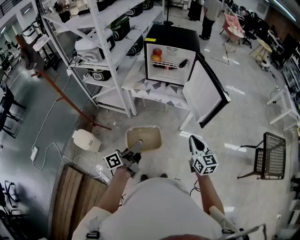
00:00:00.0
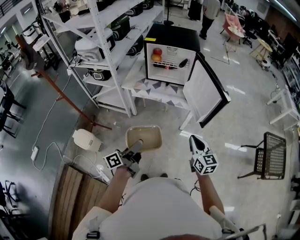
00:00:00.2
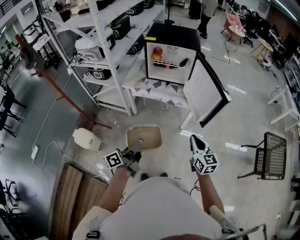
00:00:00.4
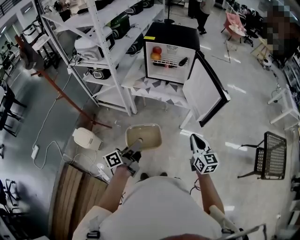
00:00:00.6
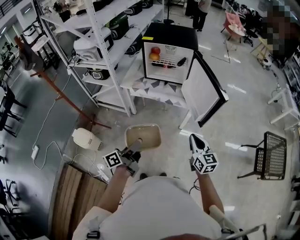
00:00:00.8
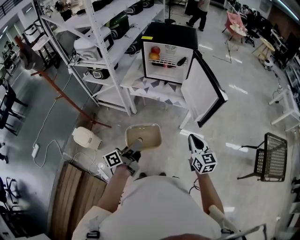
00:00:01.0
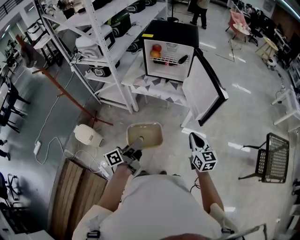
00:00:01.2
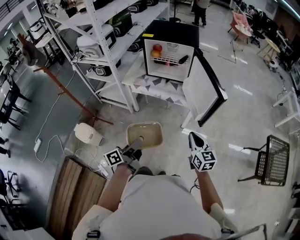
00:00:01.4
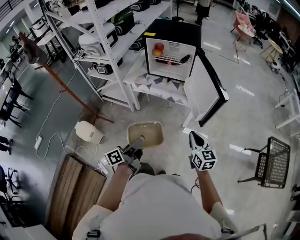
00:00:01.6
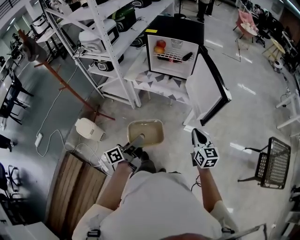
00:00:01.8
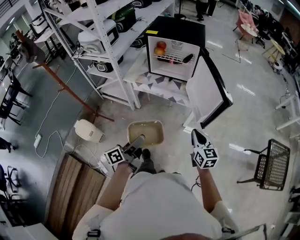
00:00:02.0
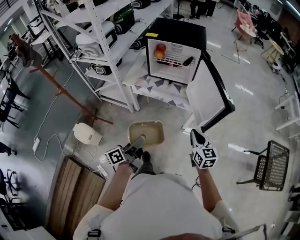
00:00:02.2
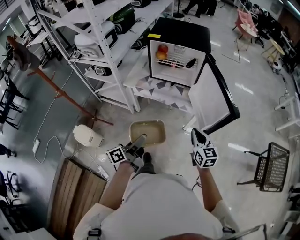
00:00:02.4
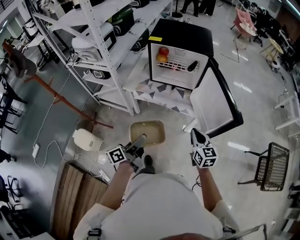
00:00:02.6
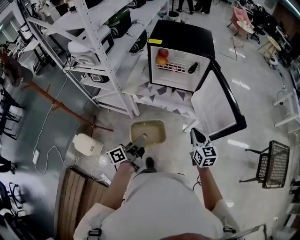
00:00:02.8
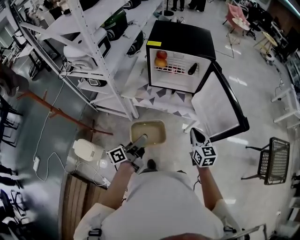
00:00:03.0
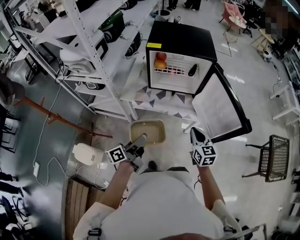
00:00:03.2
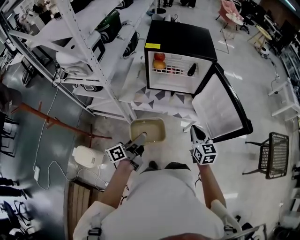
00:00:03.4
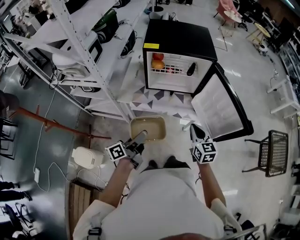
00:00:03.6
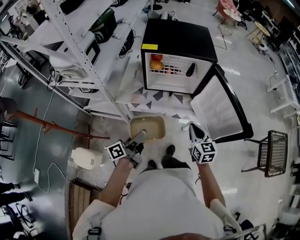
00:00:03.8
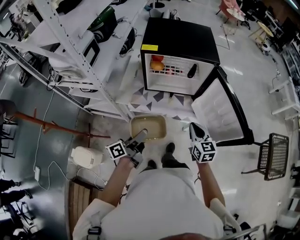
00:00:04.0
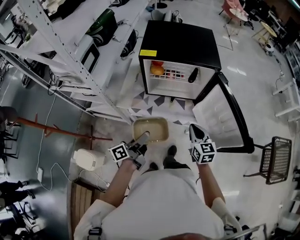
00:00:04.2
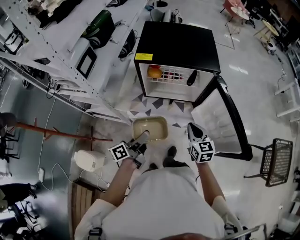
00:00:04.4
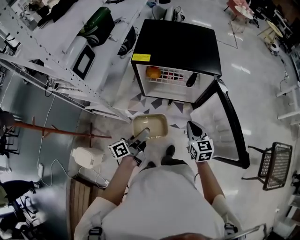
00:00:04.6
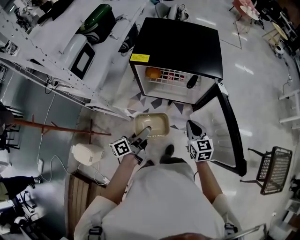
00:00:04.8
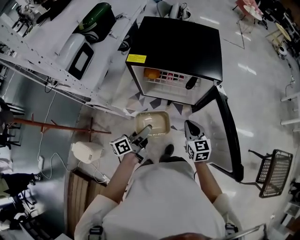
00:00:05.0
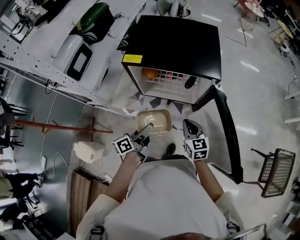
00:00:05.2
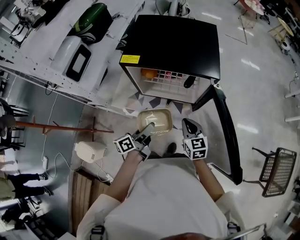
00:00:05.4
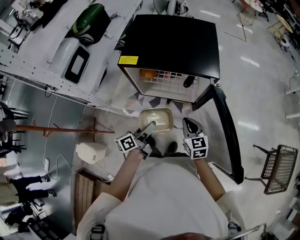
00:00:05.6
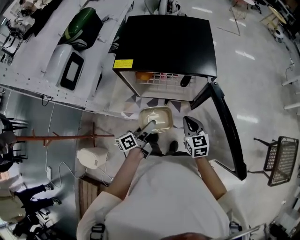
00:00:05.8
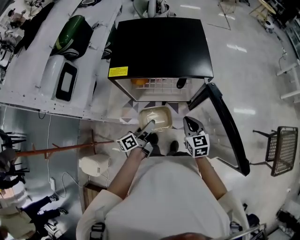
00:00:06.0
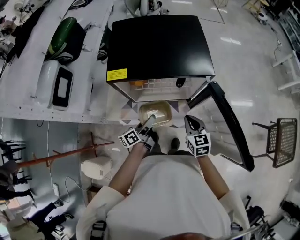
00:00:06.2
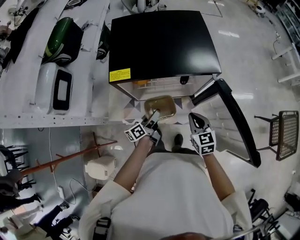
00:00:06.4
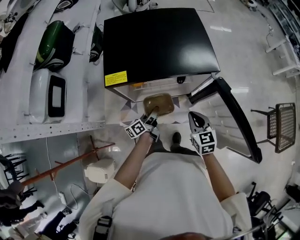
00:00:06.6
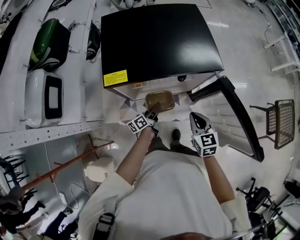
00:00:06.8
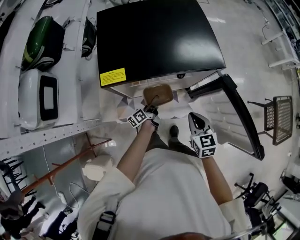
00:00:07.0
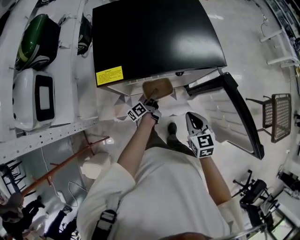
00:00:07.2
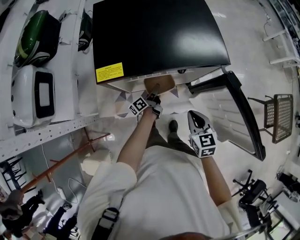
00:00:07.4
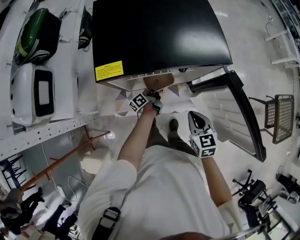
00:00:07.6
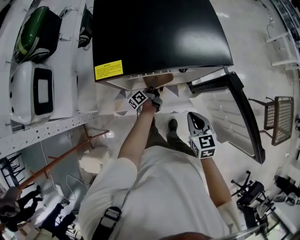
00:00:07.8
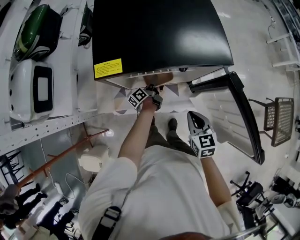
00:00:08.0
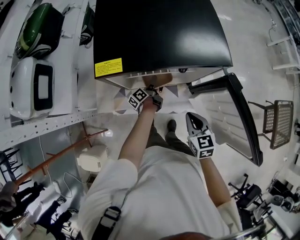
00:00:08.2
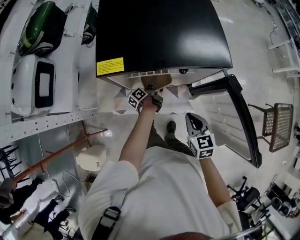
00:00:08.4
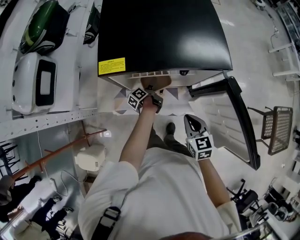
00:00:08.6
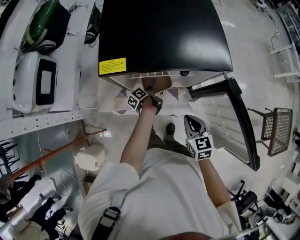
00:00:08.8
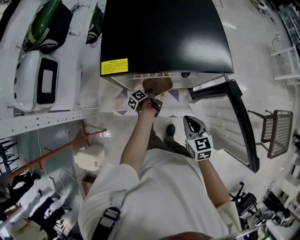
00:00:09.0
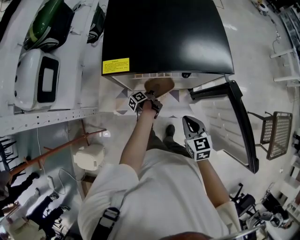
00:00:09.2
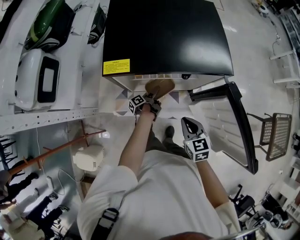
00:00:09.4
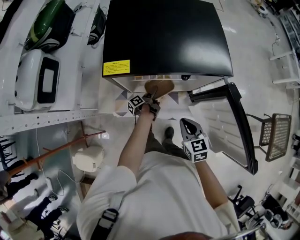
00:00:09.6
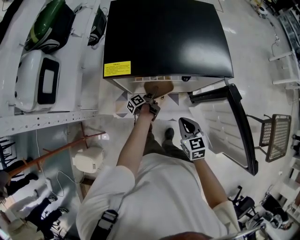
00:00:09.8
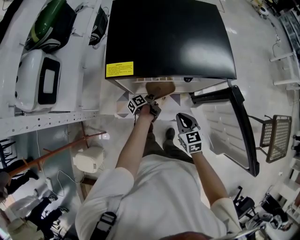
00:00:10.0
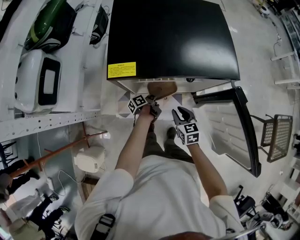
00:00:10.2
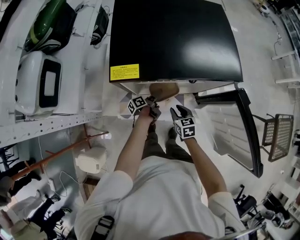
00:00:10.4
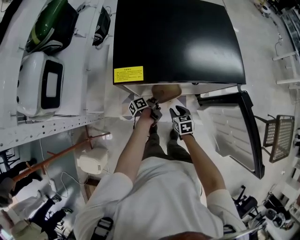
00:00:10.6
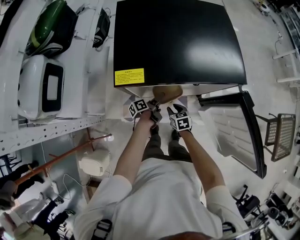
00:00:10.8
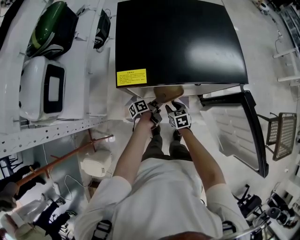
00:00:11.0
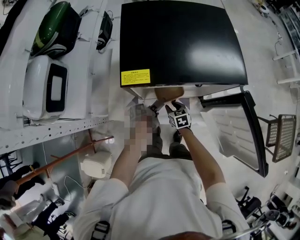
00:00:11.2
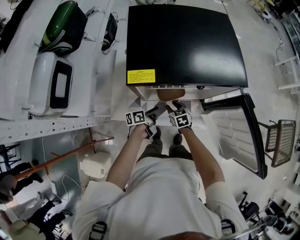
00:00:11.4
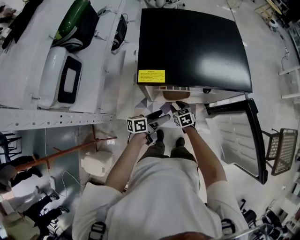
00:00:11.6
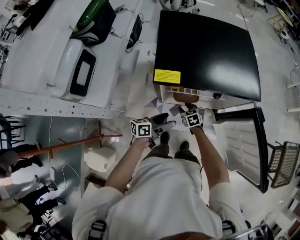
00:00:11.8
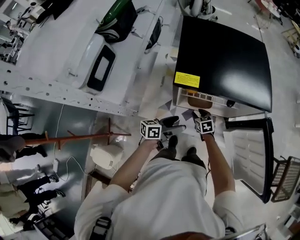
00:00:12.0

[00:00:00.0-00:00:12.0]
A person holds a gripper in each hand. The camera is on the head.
00:00:00.0 to 00:00:01.6: The two grippers go approximately 5 cm to the right.
00:00:01.6 to 00:00:03.0: The two grippers go about 20 cm forward and to the left.
00:00:03.0 to 00:00:04.4: The grippers both shift forward by roughly 15 cm.
00:00:04.4 to 00:00:06.0: The right gripper moves forward, approximately 10 cm; the left gripper shifts roughly 15 cm forward, to the right and downward.
00:00:06.0 to 00:00:07.6: The left gripper shifts approximately 25 cm downward and forward.
00:00:07.6 to 00:00:09.0: The left gripper ends up approximately 5 cm from where it was, swivels approximately 30 degrees, and opens up.
00:00:09.0 to 00:00:10.4: The right gripper moves downward, forward and to the left, about 15 cm, and opens.
00:00:10.4 to 00:00:12.0: The left gripper goes roughly 20 cm upward and backward, and rolls clockwise, seen from behind, by roughly 40 degrees, while the right gripper is displaced to the left and forward by about 10 cm.

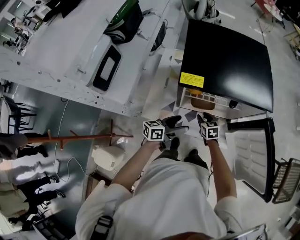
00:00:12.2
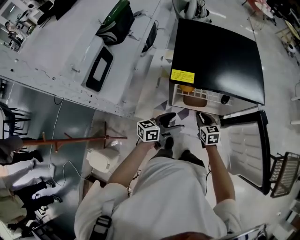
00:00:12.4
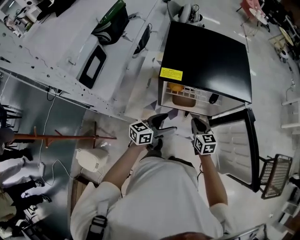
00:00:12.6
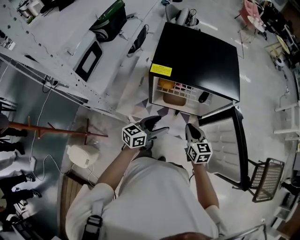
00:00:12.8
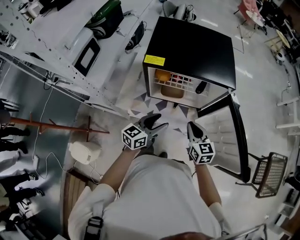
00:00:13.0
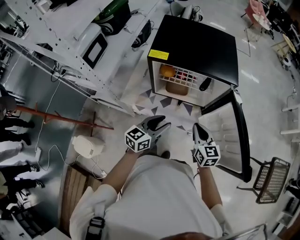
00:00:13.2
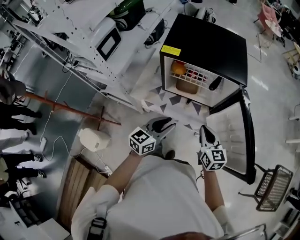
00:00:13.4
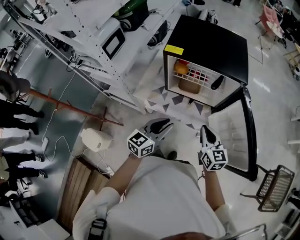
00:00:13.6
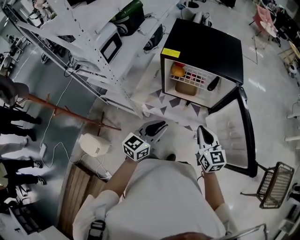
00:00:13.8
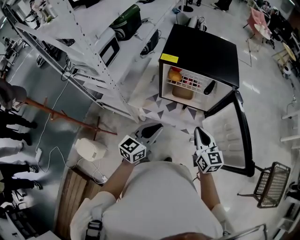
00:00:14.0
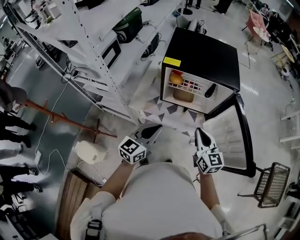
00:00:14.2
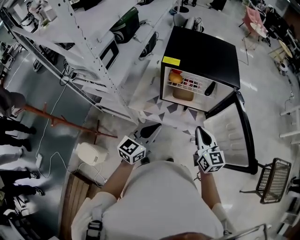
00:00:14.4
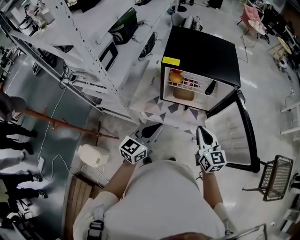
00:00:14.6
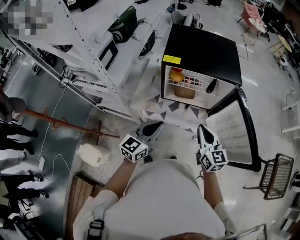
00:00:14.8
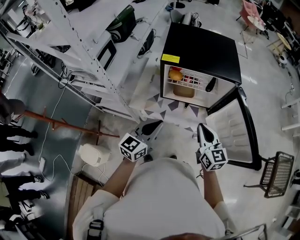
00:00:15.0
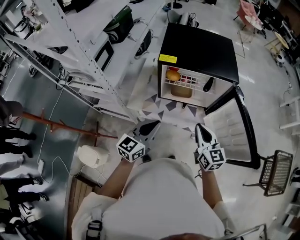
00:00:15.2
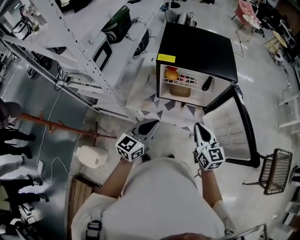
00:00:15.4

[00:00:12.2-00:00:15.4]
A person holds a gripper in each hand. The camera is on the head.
00:00:12.2 to 00:00:13.8: The right gripper heads upward, backward and to the right, covering about 35 cm, angles its fingers upward, by approximately 30 degrees, and closes. The left gripper travels backward and upward by approximately 25 cm, changes its angle by approximately 40 degrees, and closes.
00:00:13.8 to 00:00:15.4: The left gripper heads to the left, covering about 5 cm.

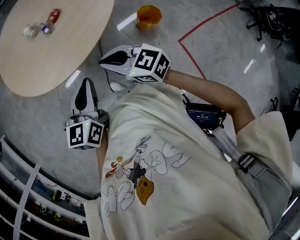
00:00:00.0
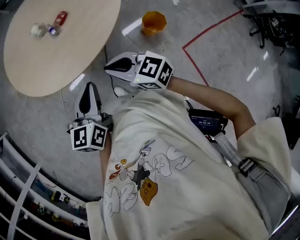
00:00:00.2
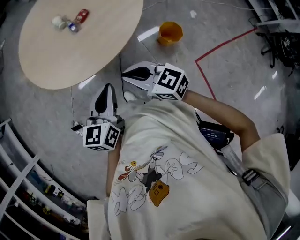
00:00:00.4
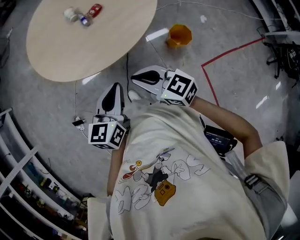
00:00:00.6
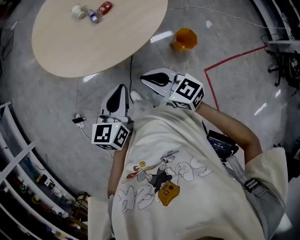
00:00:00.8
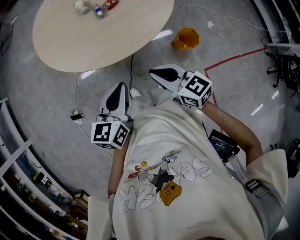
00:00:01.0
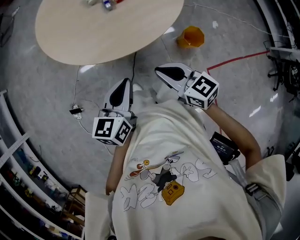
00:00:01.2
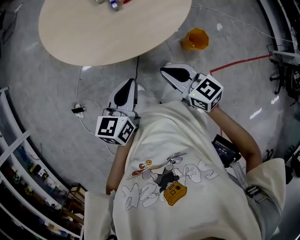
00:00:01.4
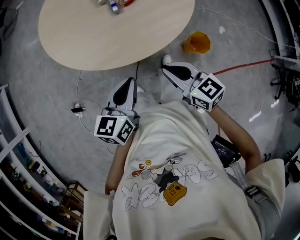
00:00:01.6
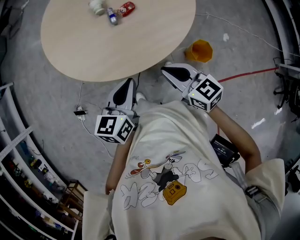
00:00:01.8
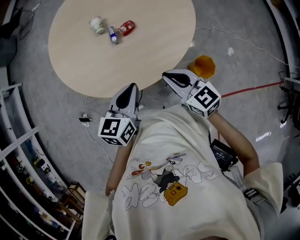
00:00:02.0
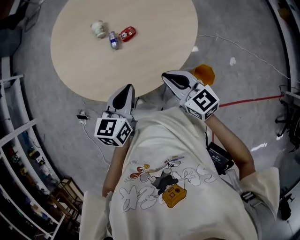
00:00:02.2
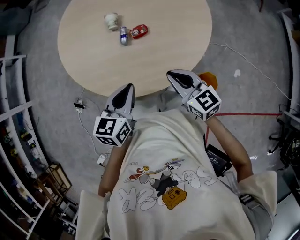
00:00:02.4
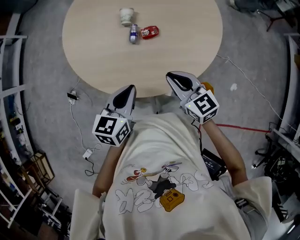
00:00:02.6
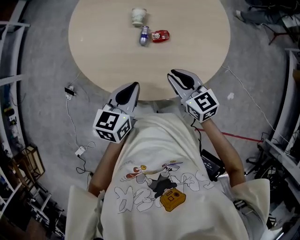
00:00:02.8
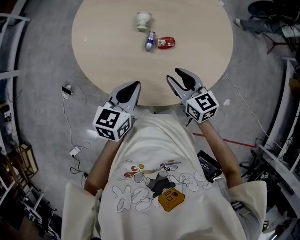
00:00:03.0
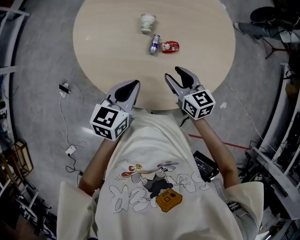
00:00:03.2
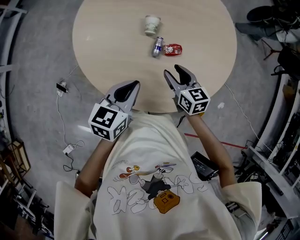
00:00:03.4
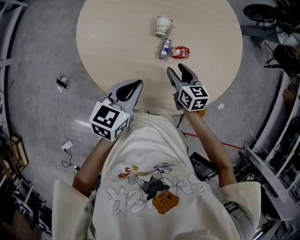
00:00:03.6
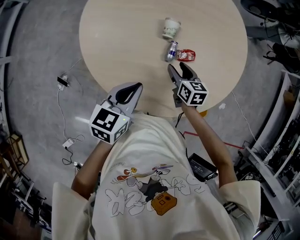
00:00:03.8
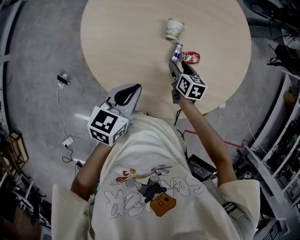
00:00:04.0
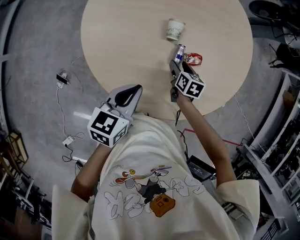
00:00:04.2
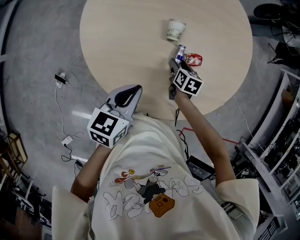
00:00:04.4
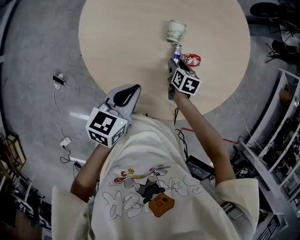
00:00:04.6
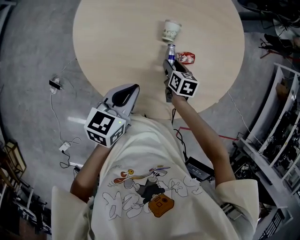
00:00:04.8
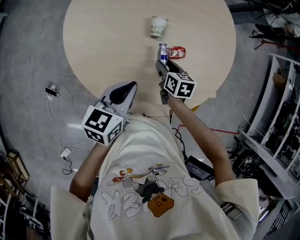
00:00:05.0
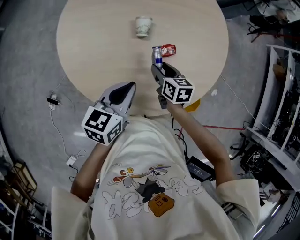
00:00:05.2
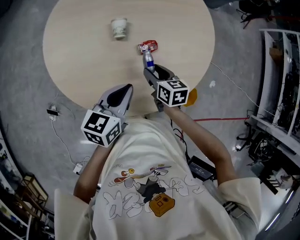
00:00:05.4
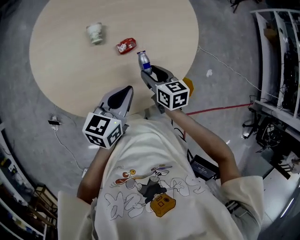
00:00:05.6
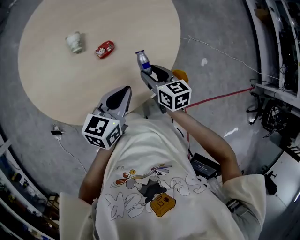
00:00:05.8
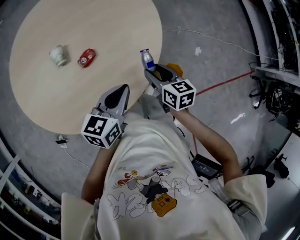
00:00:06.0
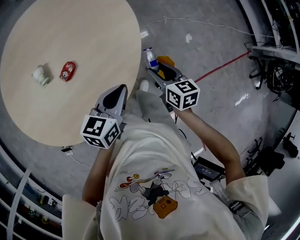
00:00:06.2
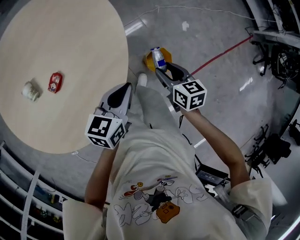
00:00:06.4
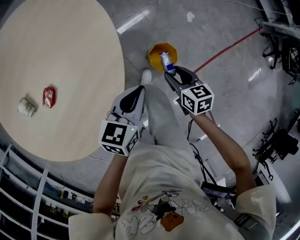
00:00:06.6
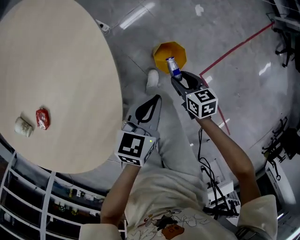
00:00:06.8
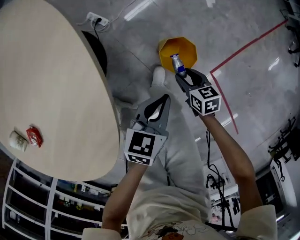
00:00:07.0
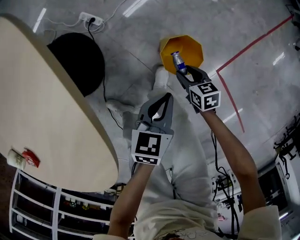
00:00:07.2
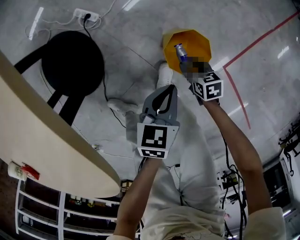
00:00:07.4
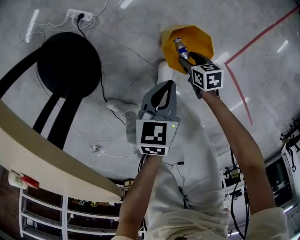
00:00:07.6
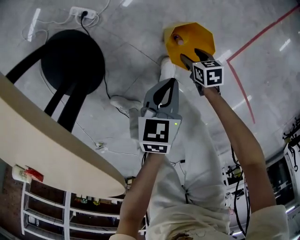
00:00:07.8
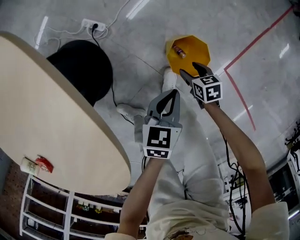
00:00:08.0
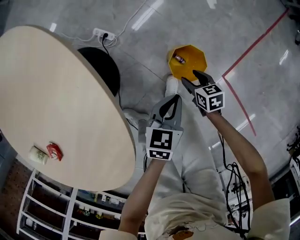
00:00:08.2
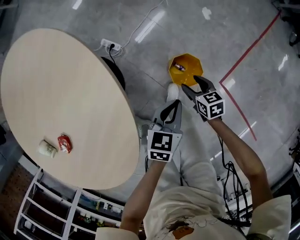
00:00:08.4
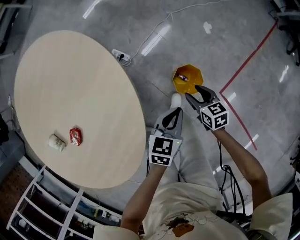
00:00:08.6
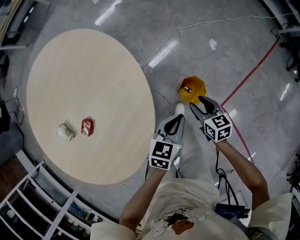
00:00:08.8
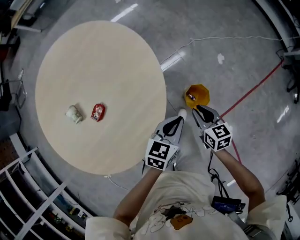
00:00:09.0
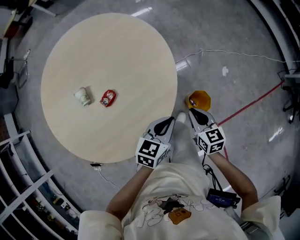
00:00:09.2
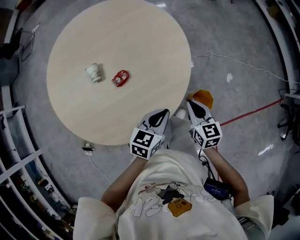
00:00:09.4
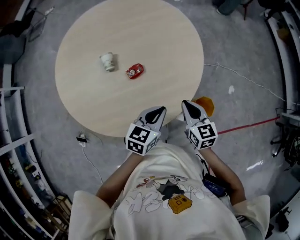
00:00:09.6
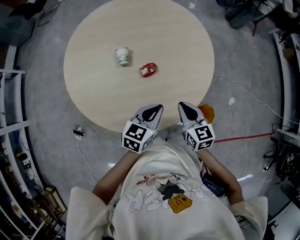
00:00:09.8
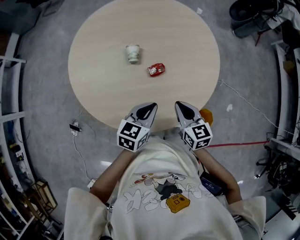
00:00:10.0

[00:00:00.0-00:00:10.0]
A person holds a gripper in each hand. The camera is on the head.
00:00:00.0 to 00:00:01.4: The left gripper is displaced to the left by some 5 cm.
00:00:01.4 to 00:00:02.8: The grippers both shift forward and to the right by approximately 25 cm. The left gripper turns by approximately 20 degrees.
00:00:02.8 to 00:00:04.2: The left gripper shifts about 20 cm to the left and forward, while the right gripper travels downward, forward and to the left by roughly 30 cm, rotates roughly 40 degrees, and opens.
00:00:04.2 to 00:00:05.8: The left gripper travels to the right by about 25 cm, and swivels some 20 degrees; the right gripper shifts about 25 cm to the right, upward and backward.
00:00:05.8 to 00:00:07.2: Both grippers travel together downward, some 40 cm. The right gripper swivels about 40 degrees, while the left gripper swivels approximately 40 degrees.
00:00:07.2 to 00:00:08.6: Both grippers move upward, some 20 cm.
00:00:08.6 to 00:00:10.0: The pair of grippers is taken about 40 cm. The left gripper swivels approximately 40 degrees, while the right gripper turns by approximately 50 degrees, and closes its fingers.
